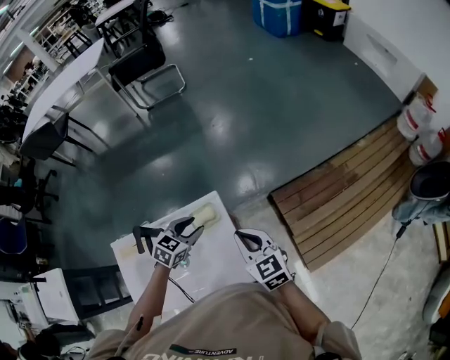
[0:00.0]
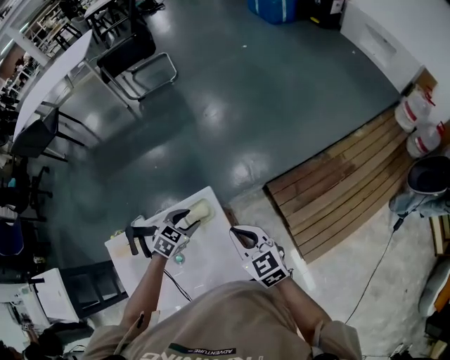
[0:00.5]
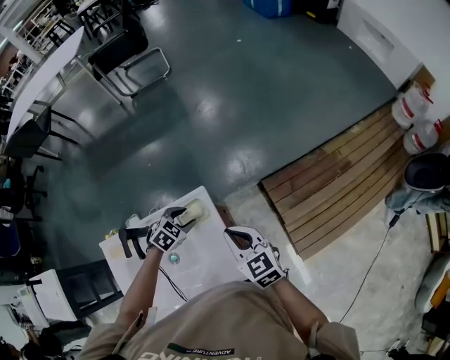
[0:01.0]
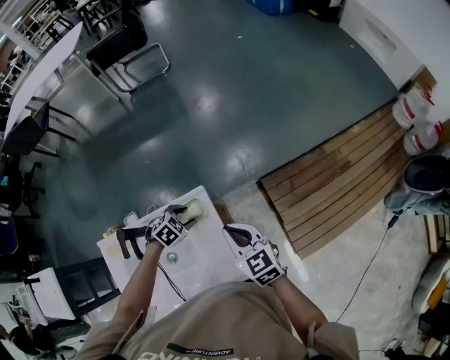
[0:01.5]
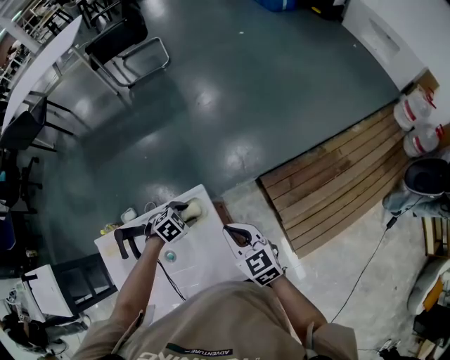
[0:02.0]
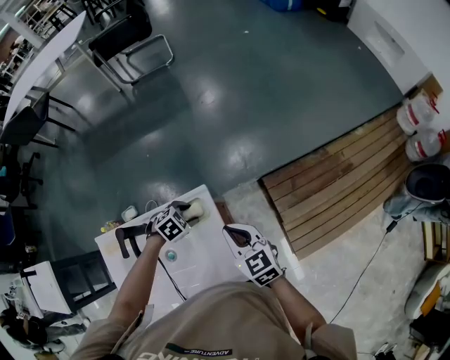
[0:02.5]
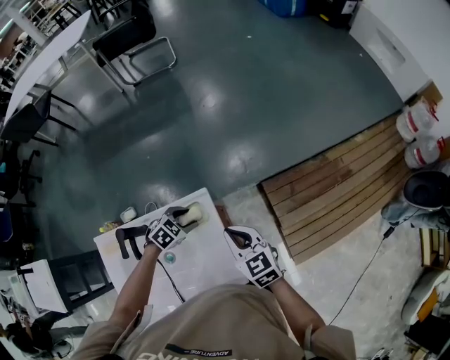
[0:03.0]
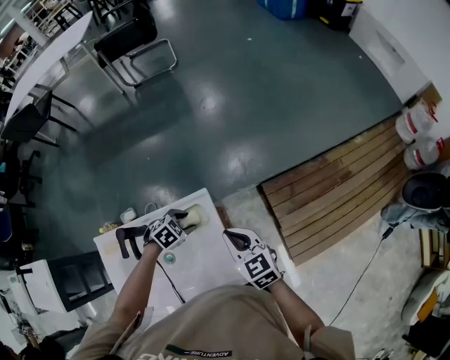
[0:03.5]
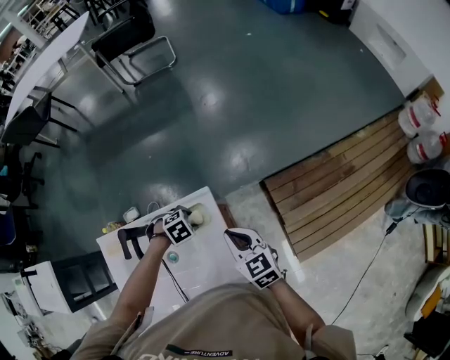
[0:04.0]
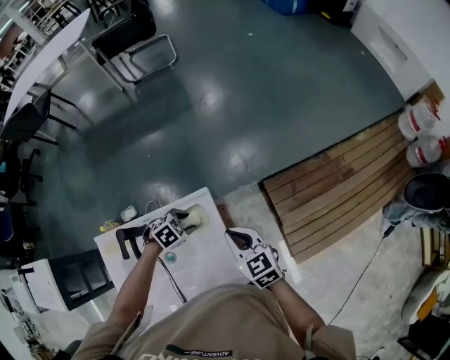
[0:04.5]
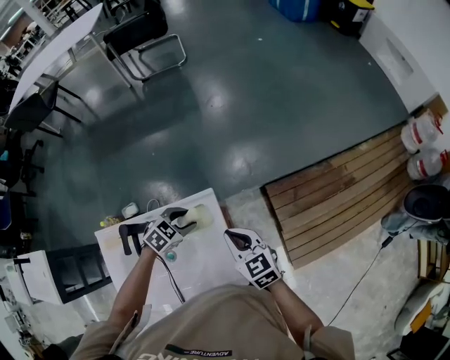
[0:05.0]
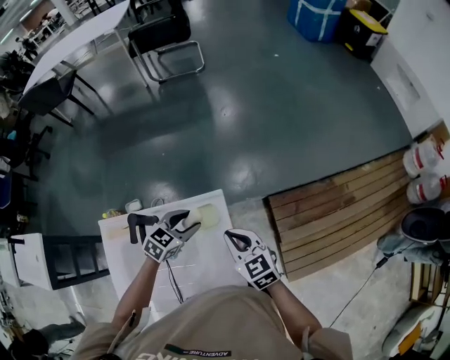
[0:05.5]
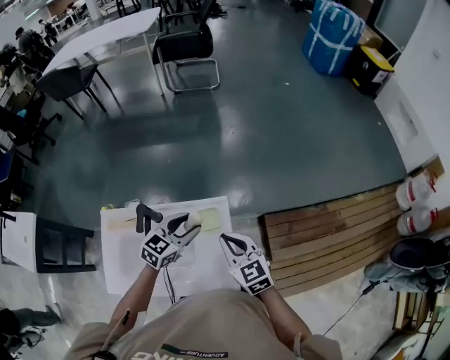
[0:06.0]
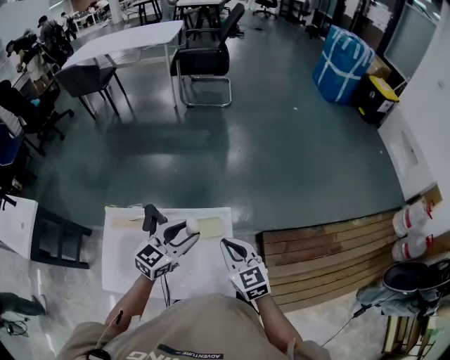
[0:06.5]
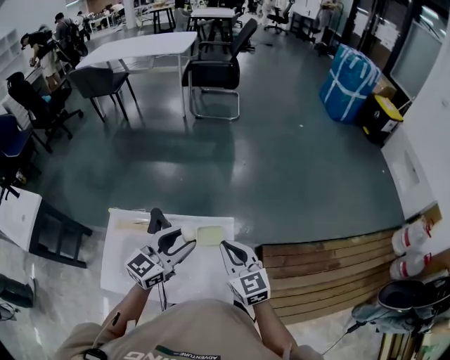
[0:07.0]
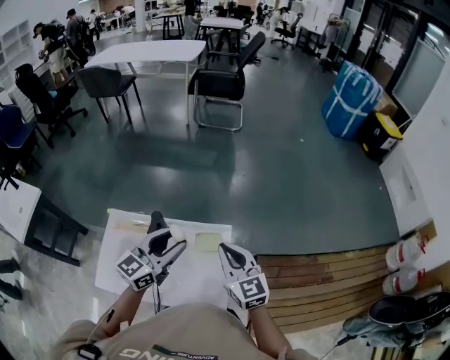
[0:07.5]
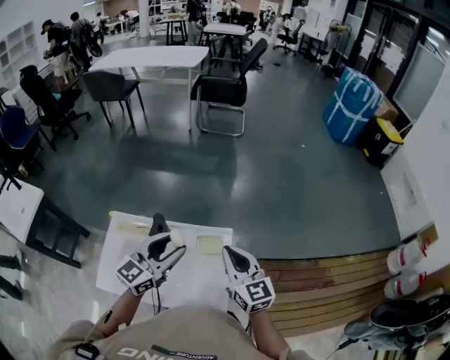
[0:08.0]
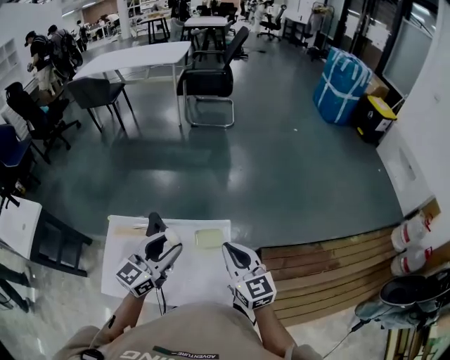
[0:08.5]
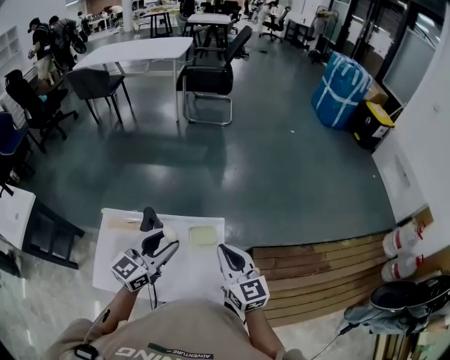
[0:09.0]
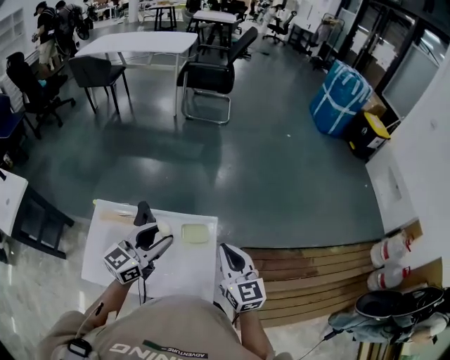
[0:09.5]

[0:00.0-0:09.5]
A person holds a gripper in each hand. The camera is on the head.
0:00.0 to 0:02.0: The right gripper changes place by approximately 5 cm. Meanwhile the left gripper shifts approximately 10 cm downward, and swivels some 30 degrees.
0:02.0 to 0:04.0: The grippers make only small movements.
0:04.0 to 0:05.5: The left gripper moves upward, about 10 cm, and tilts its fingers about 40 degrees upward.
0:05.5 to 0:07.5: The left gripper moves upward, approximately 20 cm, and angles its fingers upward, by some 40 degrees. Meanwhile the right gripper travels upward by about 15 cm.
0:07.5 to 0:09.5: There are only small adjustments of the grippers.

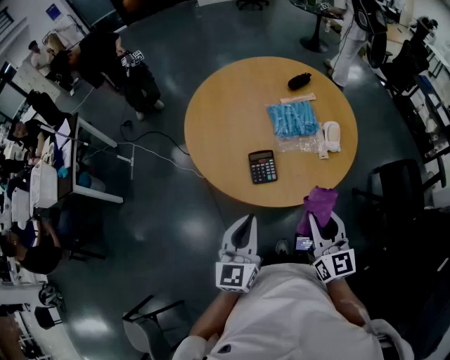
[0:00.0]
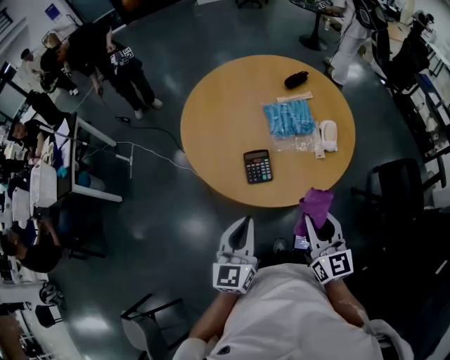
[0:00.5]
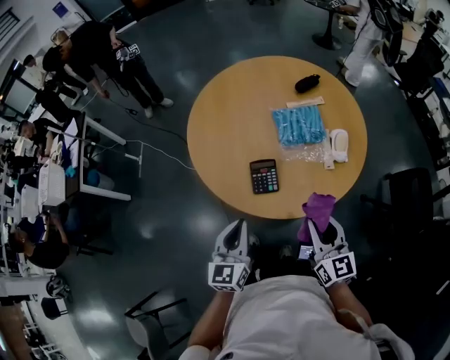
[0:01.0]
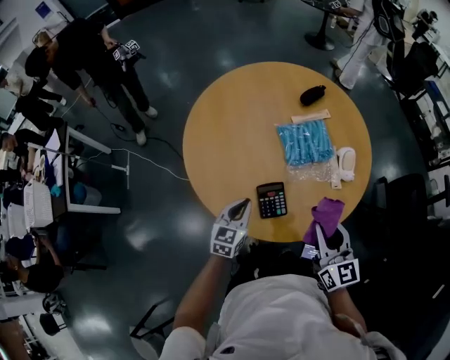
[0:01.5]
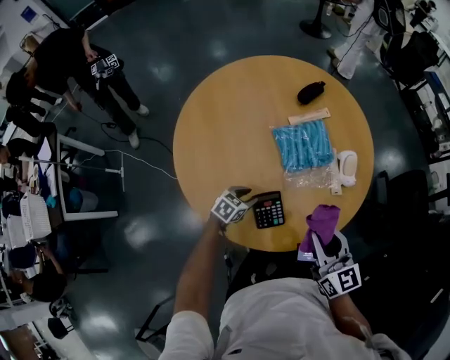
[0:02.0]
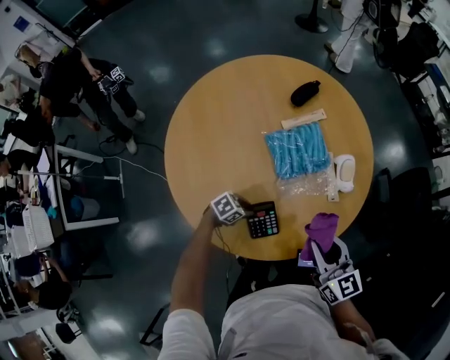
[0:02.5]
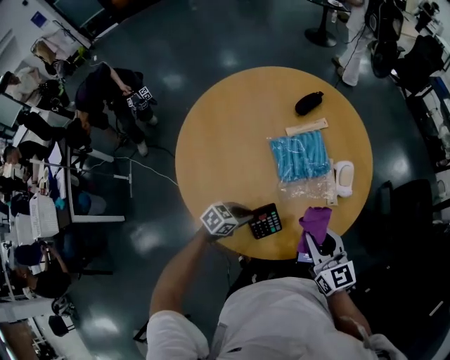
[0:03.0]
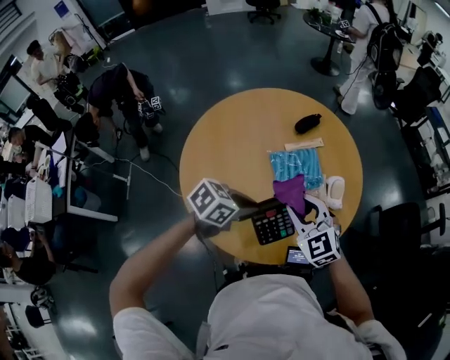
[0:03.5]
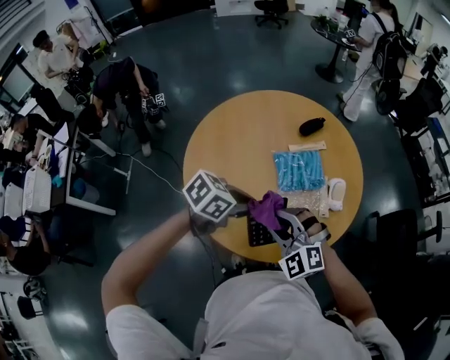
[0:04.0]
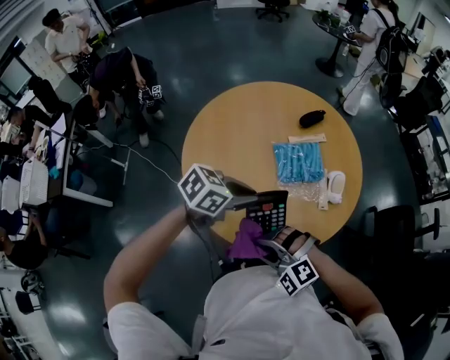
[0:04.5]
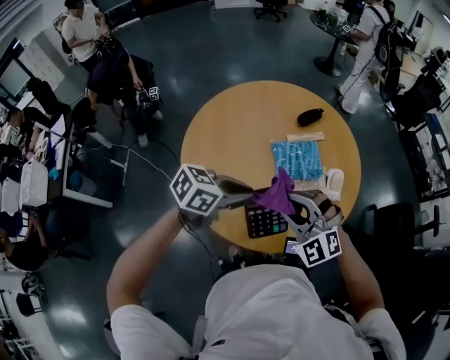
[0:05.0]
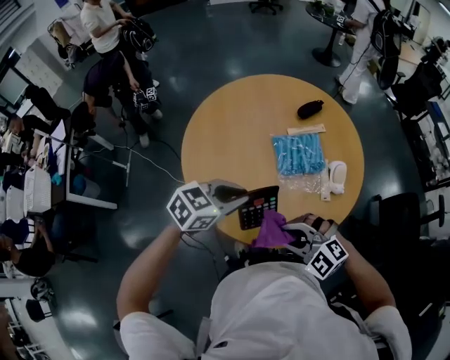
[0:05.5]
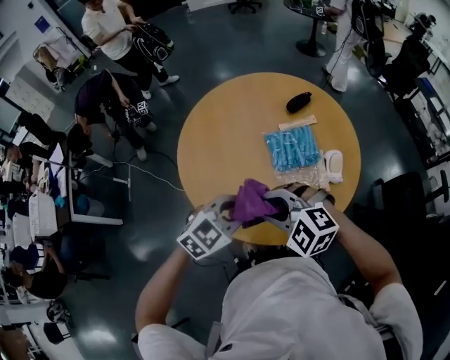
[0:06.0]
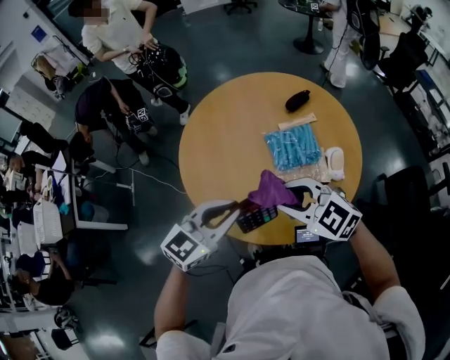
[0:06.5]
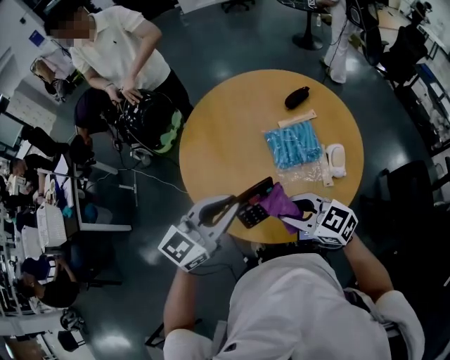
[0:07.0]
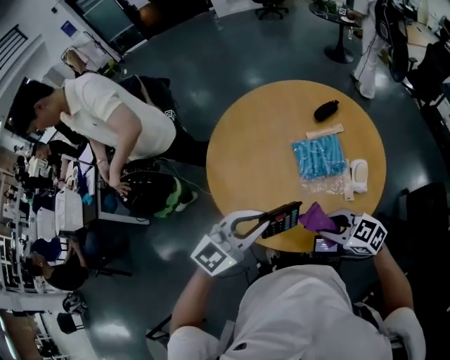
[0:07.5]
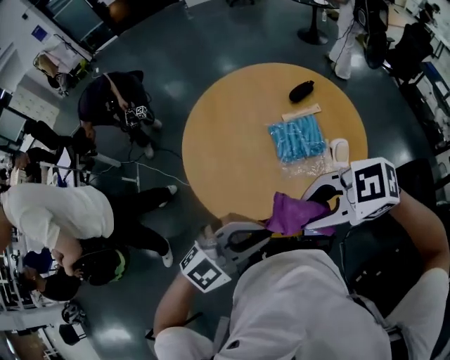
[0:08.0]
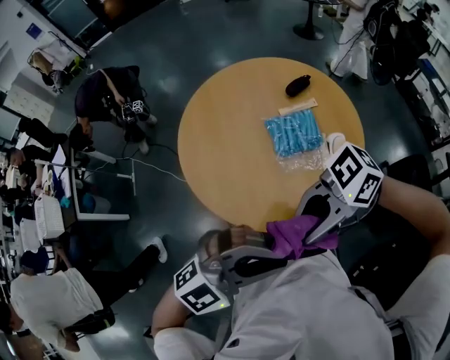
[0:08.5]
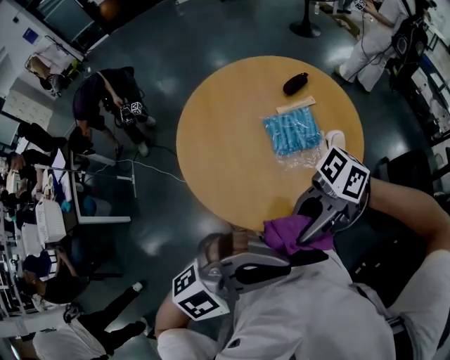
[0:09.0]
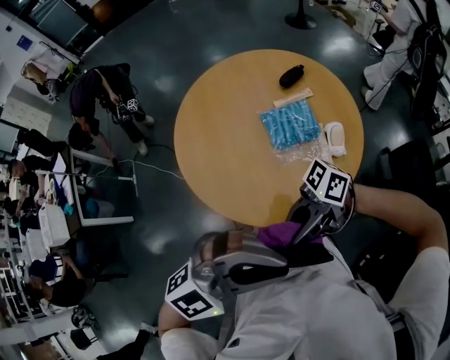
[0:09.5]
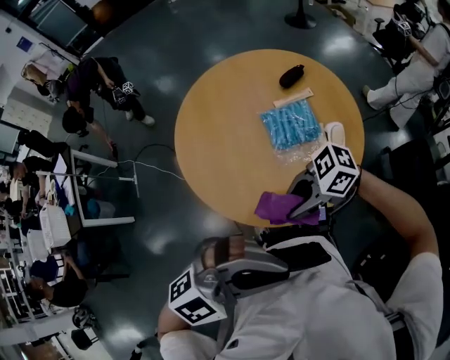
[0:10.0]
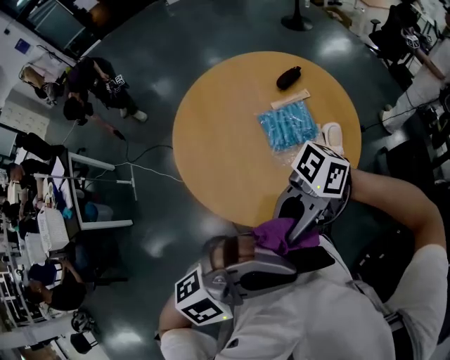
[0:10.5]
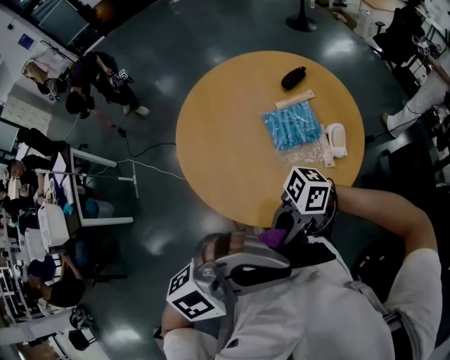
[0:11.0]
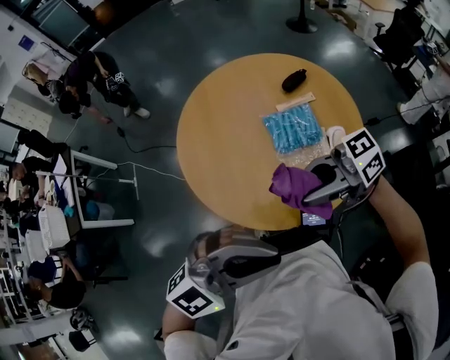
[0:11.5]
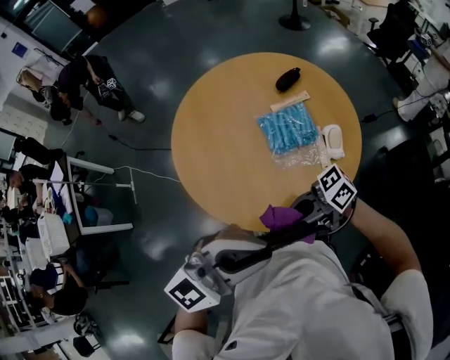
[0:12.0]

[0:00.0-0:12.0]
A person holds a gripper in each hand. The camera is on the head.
0:00.0 to 0:02.0: The left gripper travels downward by some 30 cm, points its fingers roughly 40 degrees further downward, and opens. Meanwhile the right gripper changes place by about 20 cm.
0:02.0 to 0:04.0: The left gripper is displaced upward by roughly 30 cm, and closes, while the right gripper moves approximately 10 cm, and twists about 70 degrees counterclockwise, seen from behind.
0:04.0 to 0:06.0: The left gripper changes place by some 5 cm, and rotates about 40 degrees. Meanwhile the right gripper goes up and down, about 10 cm each way, reversing 3 times, and turns by approximately 20 degrees.
0:06.0 to 0:08.0: The left gripper changes place by roughly 10 cm, and rotates about 30 degrees. Meanwhile the right gripper ends up approximately 15 cm from where it was, and swivels approximately 40 degrees.
0:08.0 to 0:10.0: The left gripper moves roughly 15 cm, while the right gripper travels downward by approximately 10 cm, and changes its angle by about 20 degrees.
0:10.0 to 0:12.0: The right gripper goes up and down, some 10 cm each way, reversing 3 times, and changes its angle by approximately 30 degrees. Meanwhile the left gripper moves roughly 5 cm, and changes its angle by approximately 20 degrees.

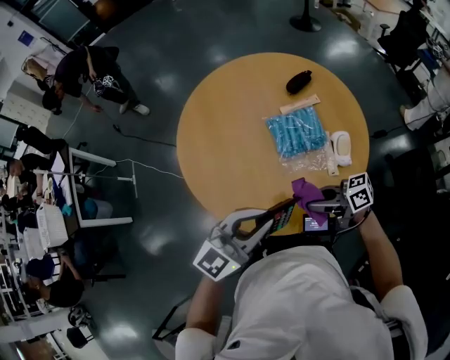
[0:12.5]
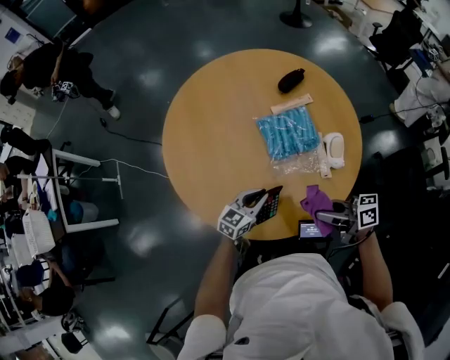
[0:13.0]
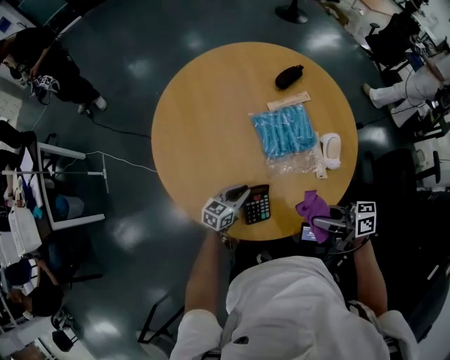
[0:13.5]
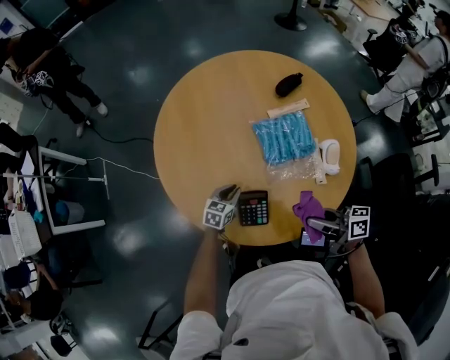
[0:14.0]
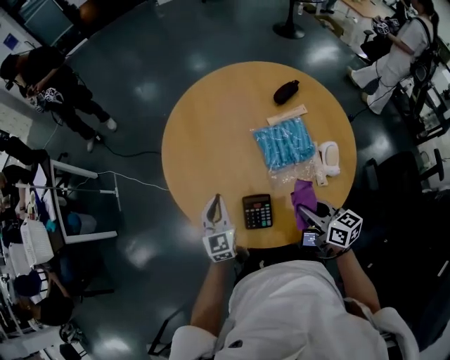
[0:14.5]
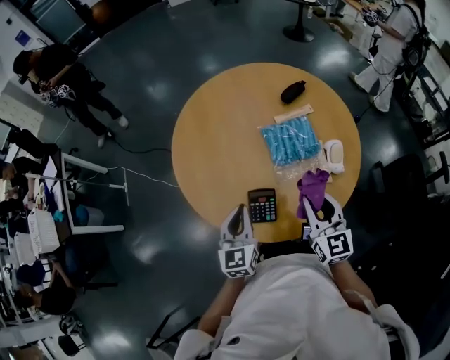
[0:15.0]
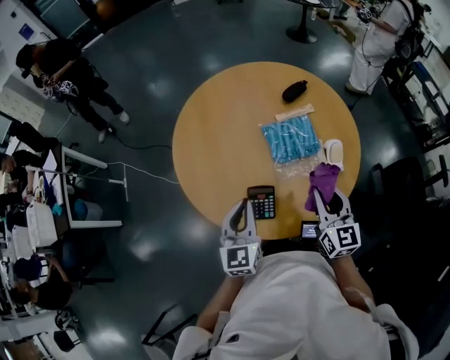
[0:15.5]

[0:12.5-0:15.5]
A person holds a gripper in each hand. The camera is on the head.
0:12.5 to 0:14.0: The right gripper changes its angle by about 20 degrees, while the left gripper moves downward, about 35 cm, and angles its fingers downward, by some 30 degrees.
0:14.0 to 0:15.5: The left gripper is displaced upward by roughly 30 cm, and swivels roughly 40 degrees. Meanwhile the right gripper shifts about 10 cm upward, and rotates about 70 degrees.

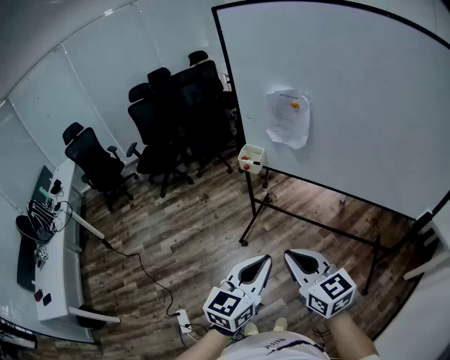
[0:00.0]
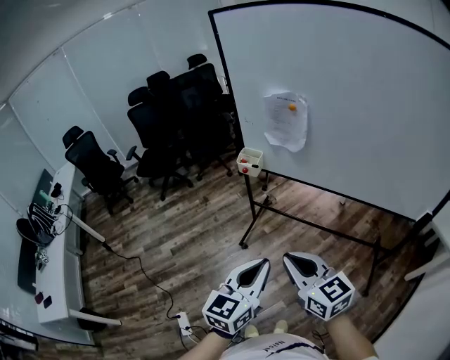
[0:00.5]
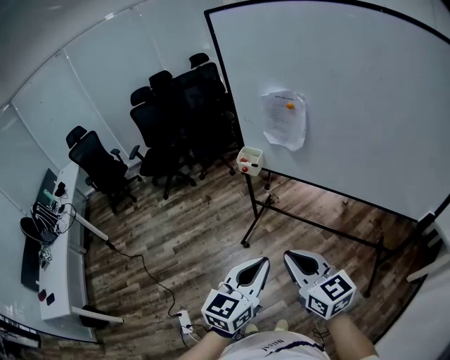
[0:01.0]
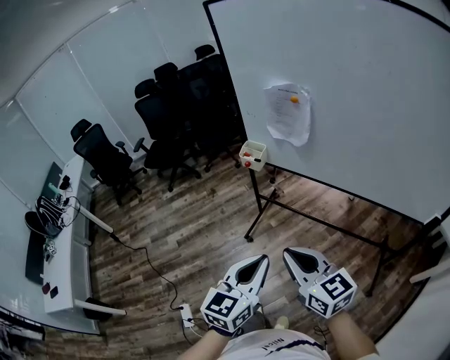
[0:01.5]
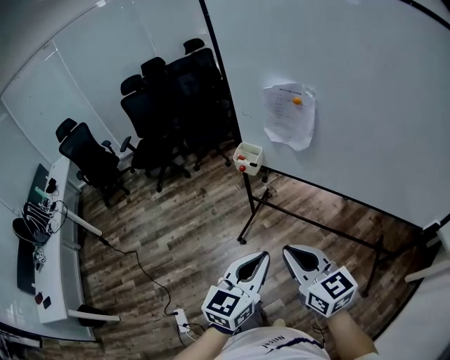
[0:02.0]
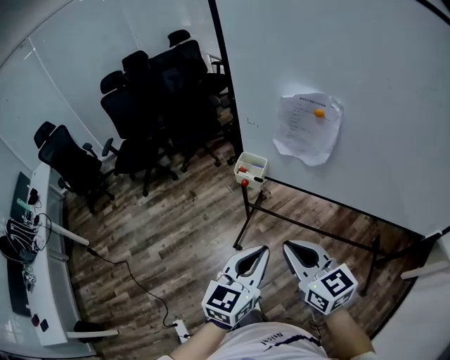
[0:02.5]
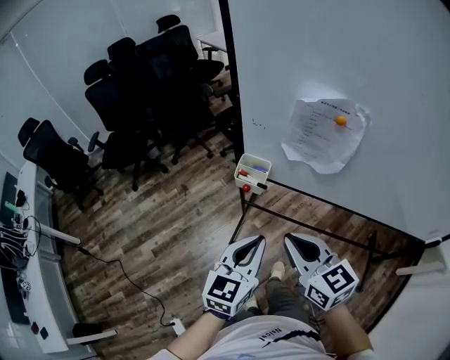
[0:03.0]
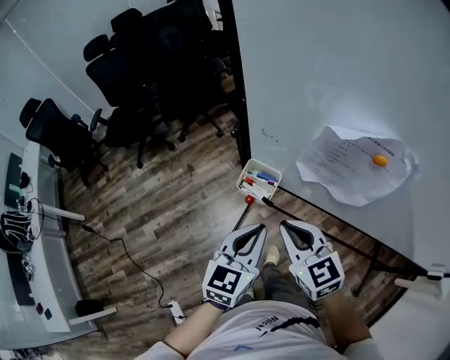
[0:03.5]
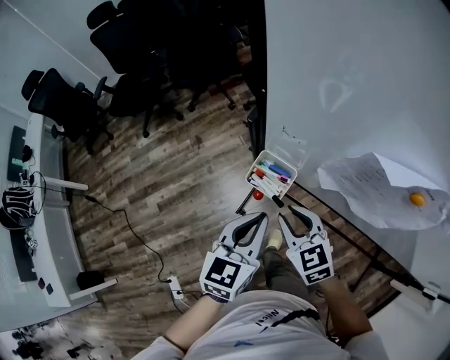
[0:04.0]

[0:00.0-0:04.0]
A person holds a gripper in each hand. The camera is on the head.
0:00.0 to 0:02.0: Both grippers move forward, some 10 cm.
0:02.0 to 0:04.0: The two grippers travel together, forward, roughly 40 cm. The right gripper shifts approximately 20 cm downward, and changes its angle by roughly 30 degrees.
